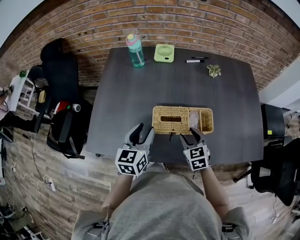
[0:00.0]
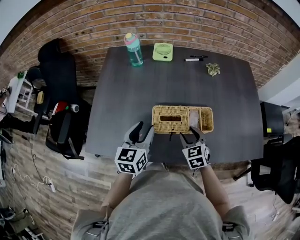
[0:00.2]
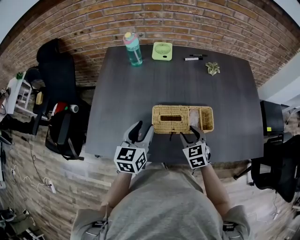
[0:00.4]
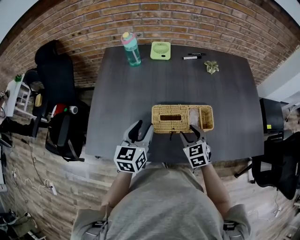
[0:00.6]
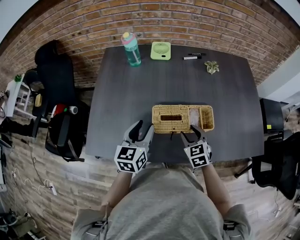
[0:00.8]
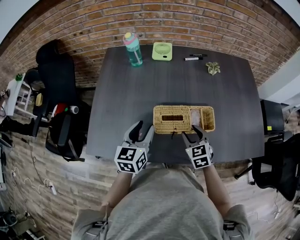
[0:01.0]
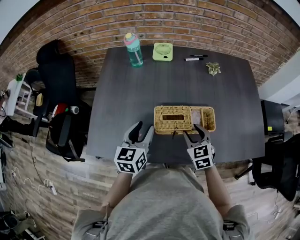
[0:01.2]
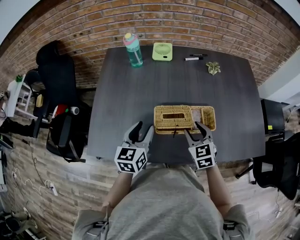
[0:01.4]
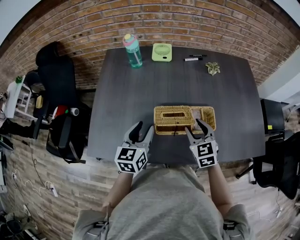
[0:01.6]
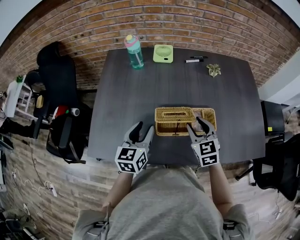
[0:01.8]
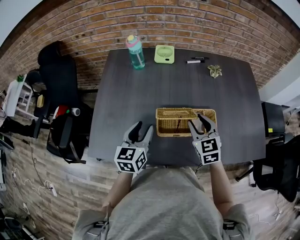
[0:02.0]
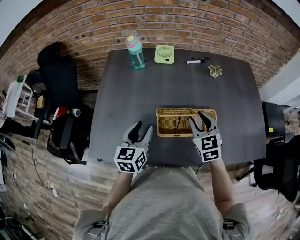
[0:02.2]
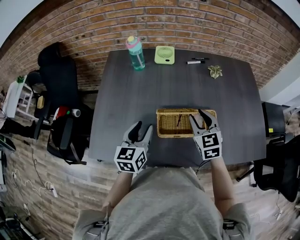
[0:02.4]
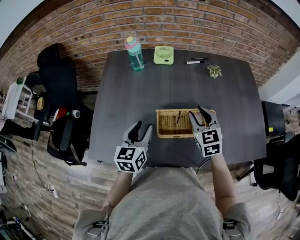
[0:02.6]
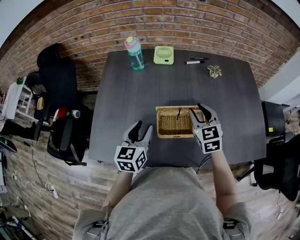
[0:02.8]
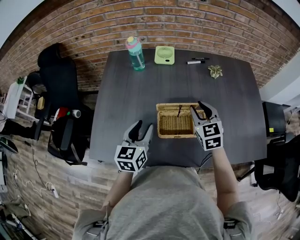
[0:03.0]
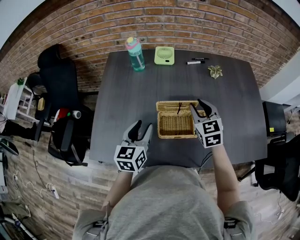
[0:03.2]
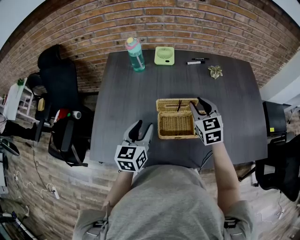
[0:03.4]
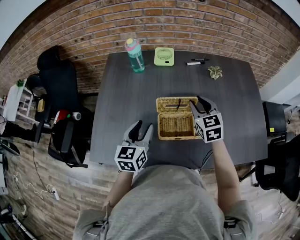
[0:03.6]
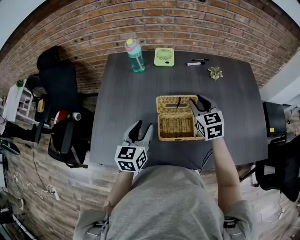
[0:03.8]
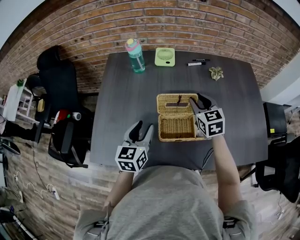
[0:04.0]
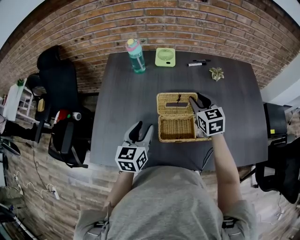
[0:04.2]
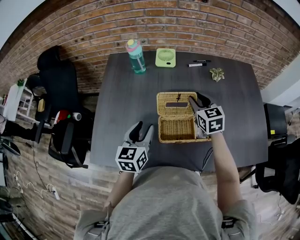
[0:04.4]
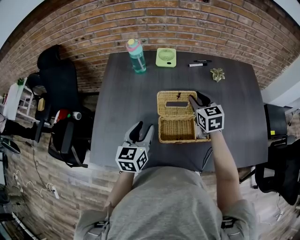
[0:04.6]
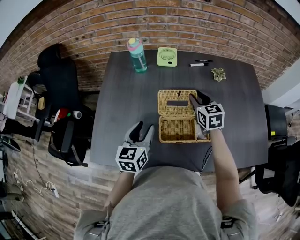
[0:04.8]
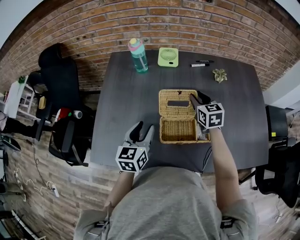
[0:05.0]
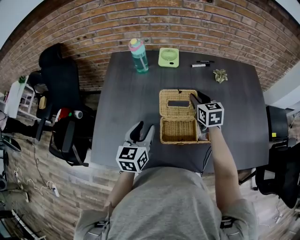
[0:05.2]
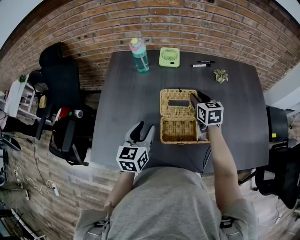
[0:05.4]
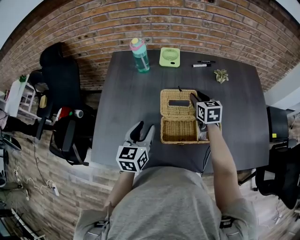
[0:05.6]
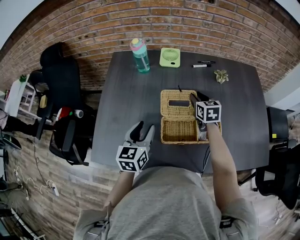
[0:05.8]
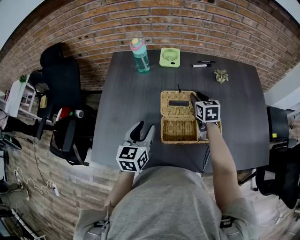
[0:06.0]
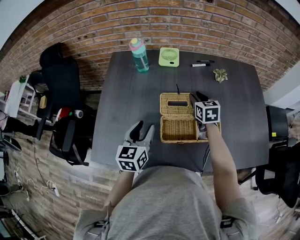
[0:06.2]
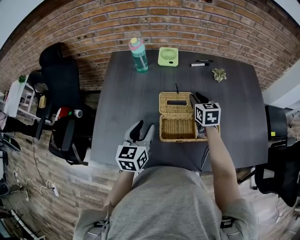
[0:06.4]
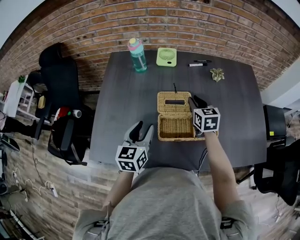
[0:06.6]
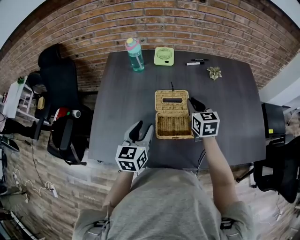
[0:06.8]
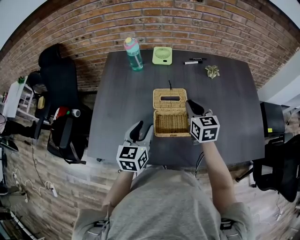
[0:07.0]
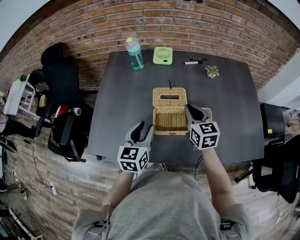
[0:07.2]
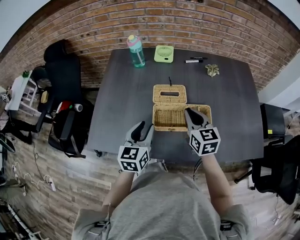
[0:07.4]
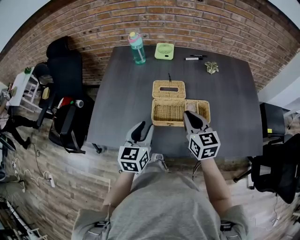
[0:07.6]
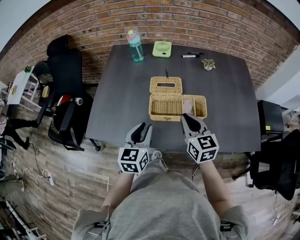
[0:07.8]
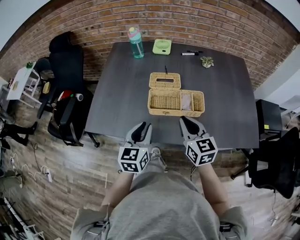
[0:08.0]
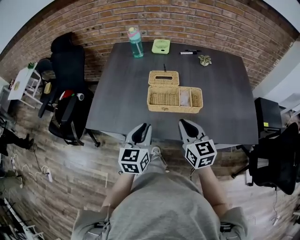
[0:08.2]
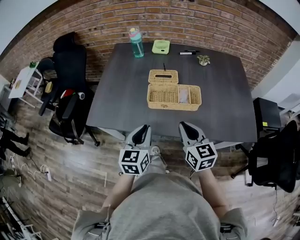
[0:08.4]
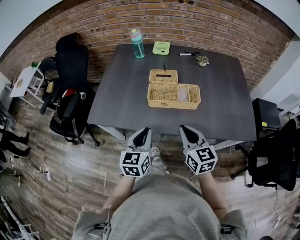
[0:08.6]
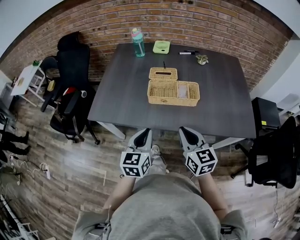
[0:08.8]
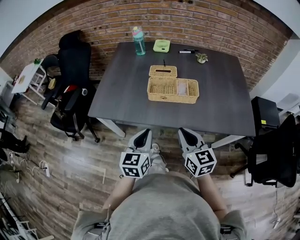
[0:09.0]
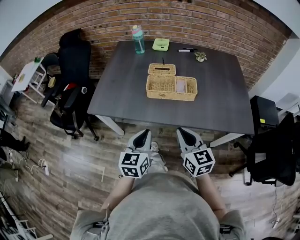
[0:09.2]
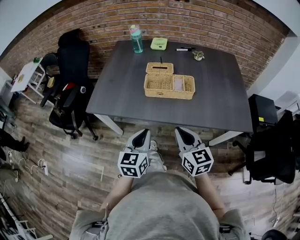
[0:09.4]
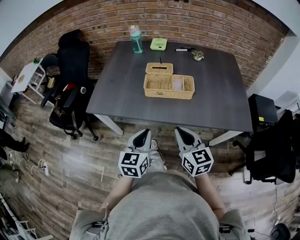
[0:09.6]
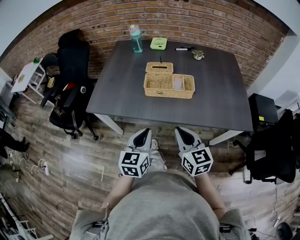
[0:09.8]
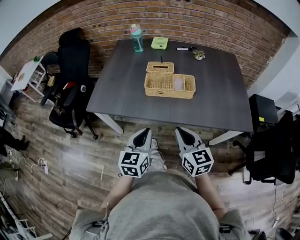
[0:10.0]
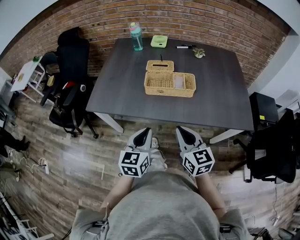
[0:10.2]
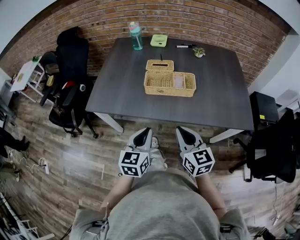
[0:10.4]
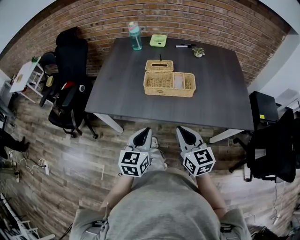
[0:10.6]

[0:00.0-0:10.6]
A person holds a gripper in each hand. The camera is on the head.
0:00.0 to 0:01.6: The right gripper shifts approximately 5 cm upward.
0:01.6 to 0:03.0: The right gripper heads forward, covering about 10 cm.
0:03.0 to 0:04.6: The right gripper travels forward by approximately 10 cm.
0:04.6 to 0:06.0: The right gripper moves downward, approximately 5 cm.
0:06.0 to 0:07.6: The left gripper travels backward and to the right by approximately 10 cm; the right gripper moves backward and upward, about 25 cm, and closes.
0:07.6 to 0:09.0: Both grippers move backward, approximately 25 cm. The left gripper closes its fingers.
0:09.0 to 0:10.6: The grippers stay close to where they were, moving slightly.

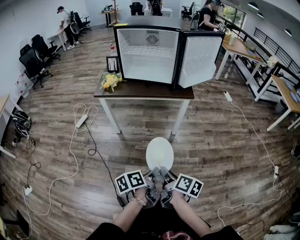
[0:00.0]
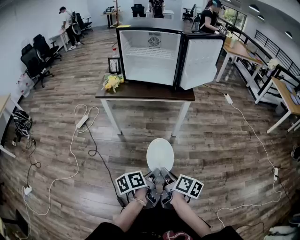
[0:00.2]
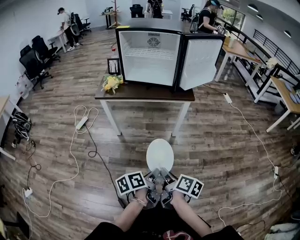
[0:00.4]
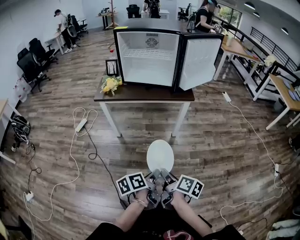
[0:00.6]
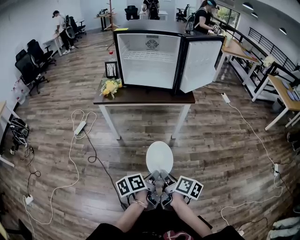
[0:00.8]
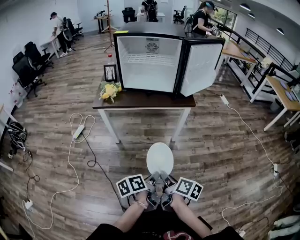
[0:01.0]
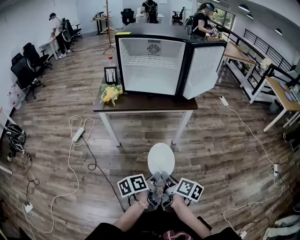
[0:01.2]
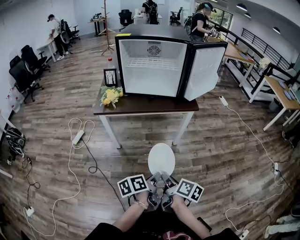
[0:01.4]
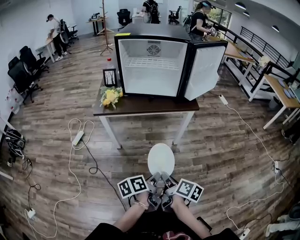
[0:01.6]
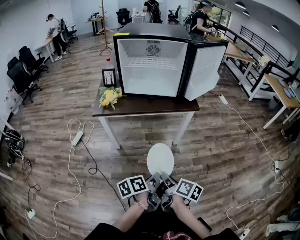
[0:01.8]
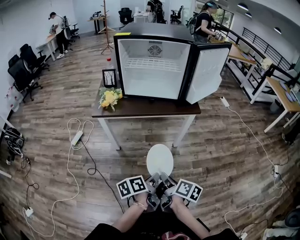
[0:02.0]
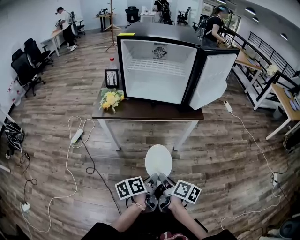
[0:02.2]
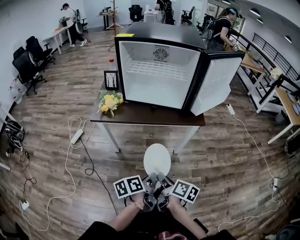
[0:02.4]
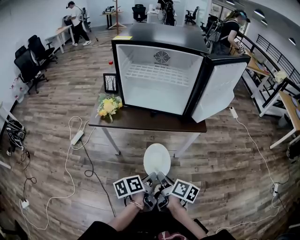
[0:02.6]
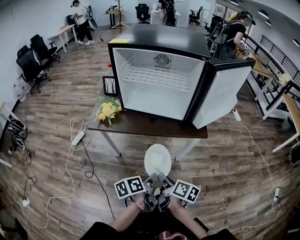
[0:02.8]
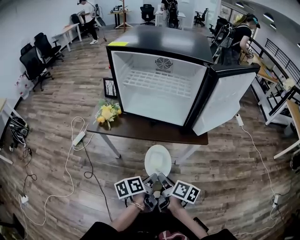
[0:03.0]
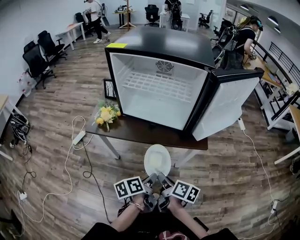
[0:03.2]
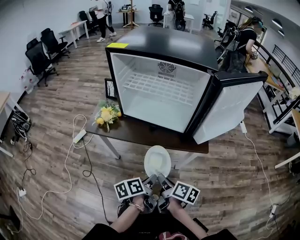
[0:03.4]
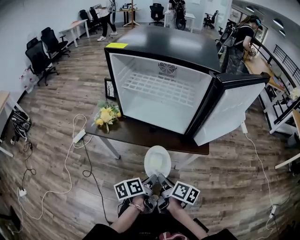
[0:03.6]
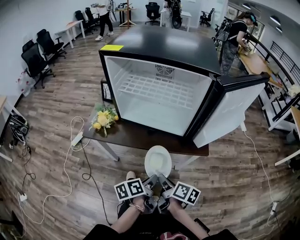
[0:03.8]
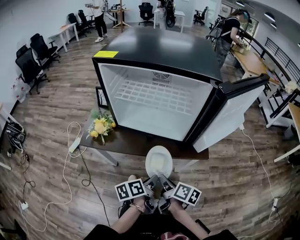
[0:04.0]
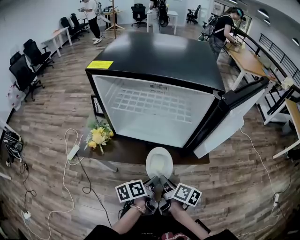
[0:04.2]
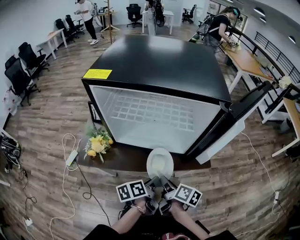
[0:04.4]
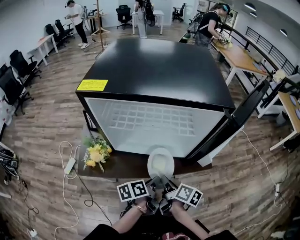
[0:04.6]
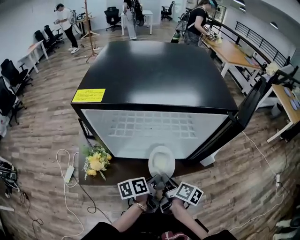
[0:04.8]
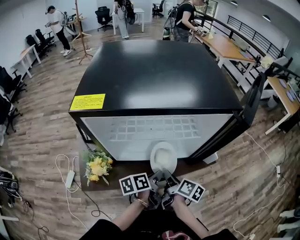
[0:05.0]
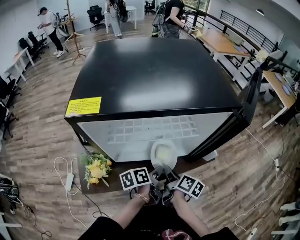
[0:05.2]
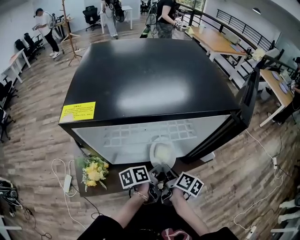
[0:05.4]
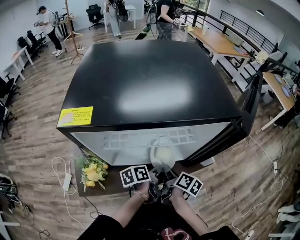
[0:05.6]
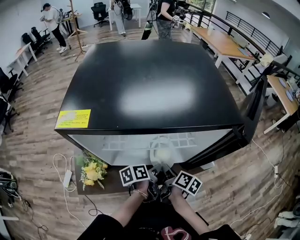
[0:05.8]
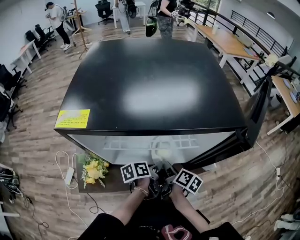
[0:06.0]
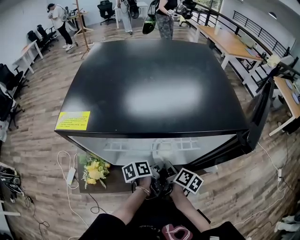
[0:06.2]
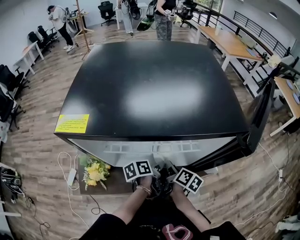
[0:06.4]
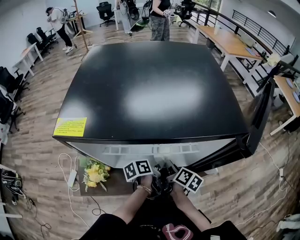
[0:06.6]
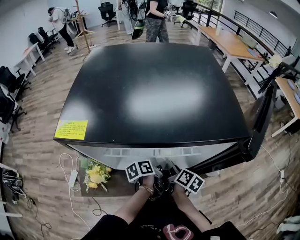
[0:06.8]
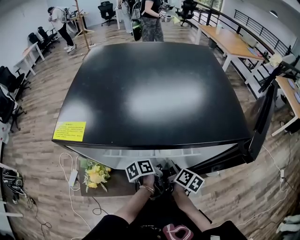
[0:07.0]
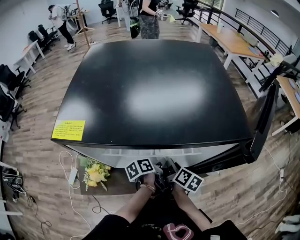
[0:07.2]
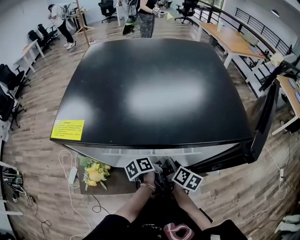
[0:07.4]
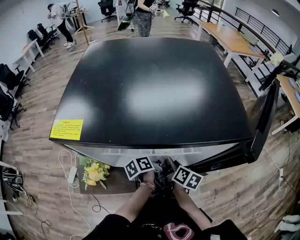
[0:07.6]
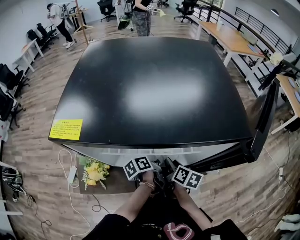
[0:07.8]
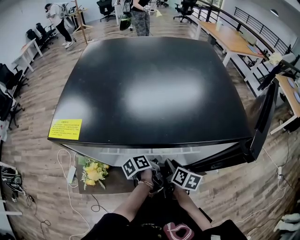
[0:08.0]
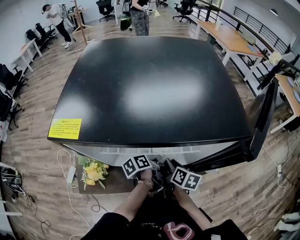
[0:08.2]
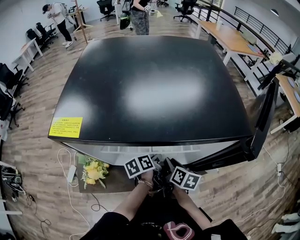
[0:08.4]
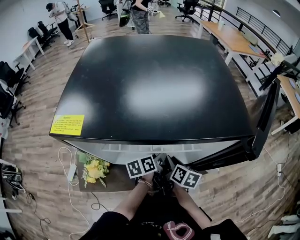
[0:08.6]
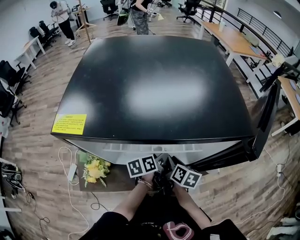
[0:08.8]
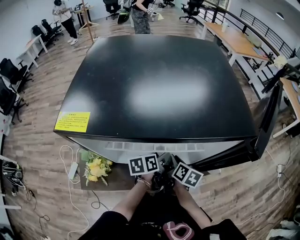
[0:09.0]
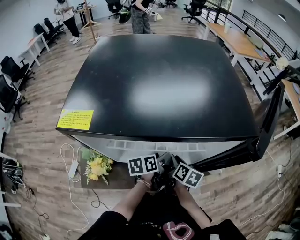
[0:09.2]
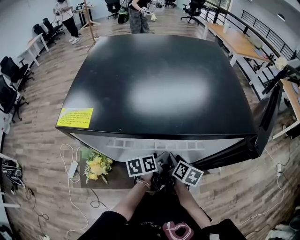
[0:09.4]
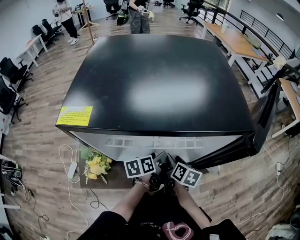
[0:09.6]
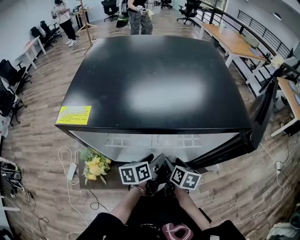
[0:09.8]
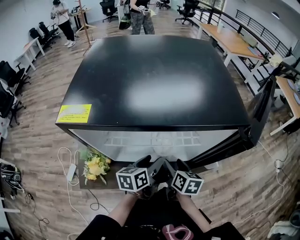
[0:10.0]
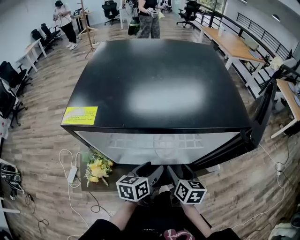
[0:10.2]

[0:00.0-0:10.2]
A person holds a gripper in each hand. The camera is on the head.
0:00.0 to 0:01.4: The grippers both shift to the left and forward by roughly 10 cm.
0:01.4 to 0:03.0: The grippers both shift forward by some 25 cm.
0:03.0 to 0:04.4: Both grippers move forward, approximately 20 cm.
0:04.4 to 0:05.8: Both grippers move forward, about 15 cm.
0:05.8 to 0:07.2: The two grippers go some 5 cm forward.
0:07.2 to 0:08.8: The left gripper opens its fingers.
0:08.8 to 0:10.2: The two grippers go approximately 10 cm backward and upward. The right gripper opens; the left gripper turns by some 20 degrees.

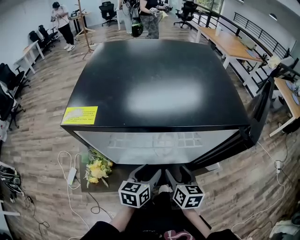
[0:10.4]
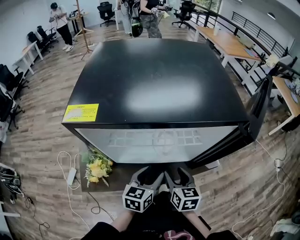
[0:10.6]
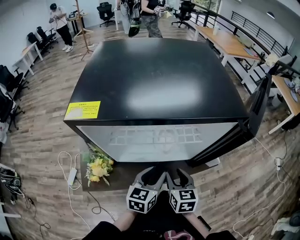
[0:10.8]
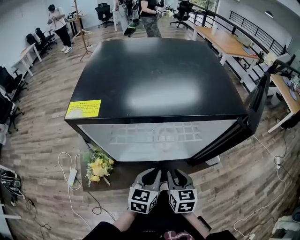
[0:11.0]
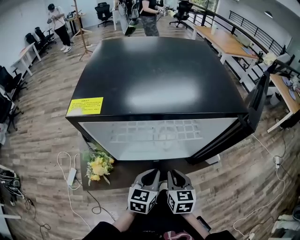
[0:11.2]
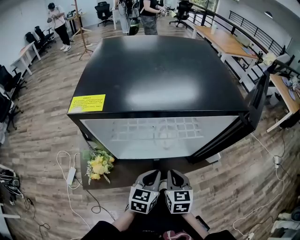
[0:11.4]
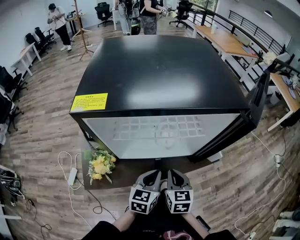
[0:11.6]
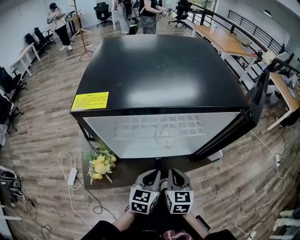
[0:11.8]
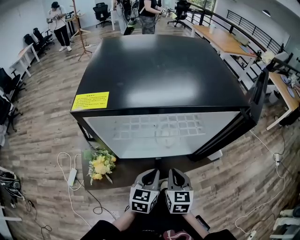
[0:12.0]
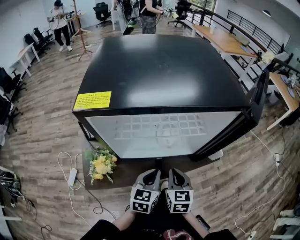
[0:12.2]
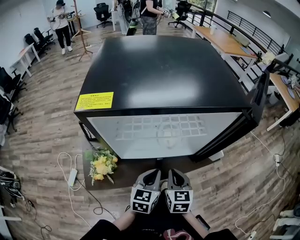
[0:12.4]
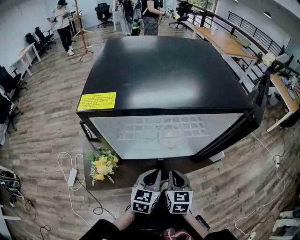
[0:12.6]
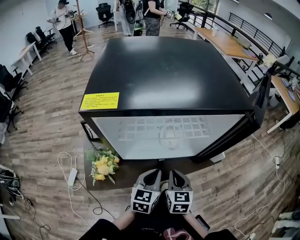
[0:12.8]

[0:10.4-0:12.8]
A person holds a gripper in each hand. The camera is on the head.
0:10.4 to 0:11.6: The two grippers go some 5 cm backward. The right gripper closes up, while the left gripper closes.
0:11.6 to 0:12.8: The grippers make only small movements.

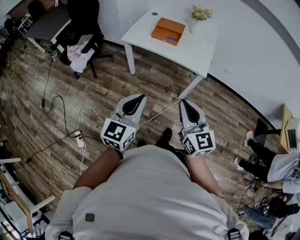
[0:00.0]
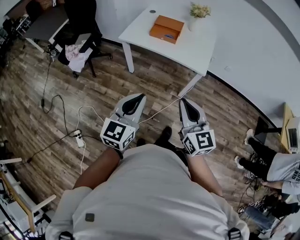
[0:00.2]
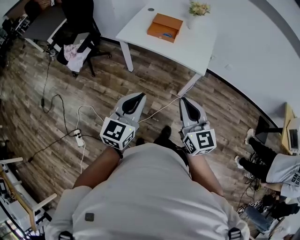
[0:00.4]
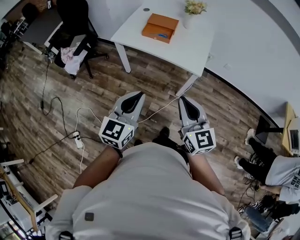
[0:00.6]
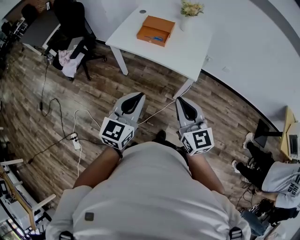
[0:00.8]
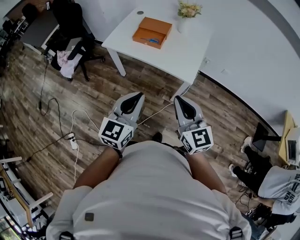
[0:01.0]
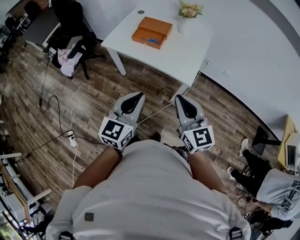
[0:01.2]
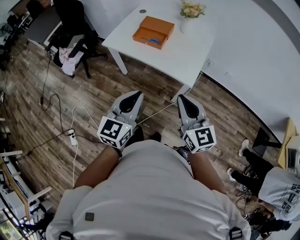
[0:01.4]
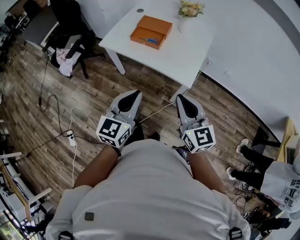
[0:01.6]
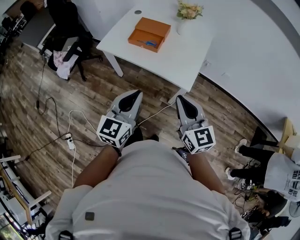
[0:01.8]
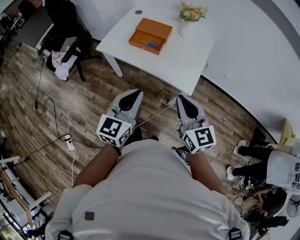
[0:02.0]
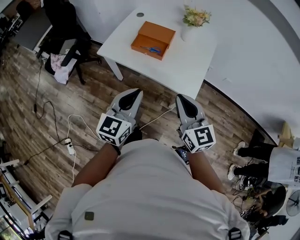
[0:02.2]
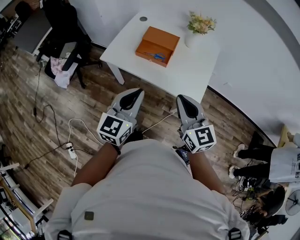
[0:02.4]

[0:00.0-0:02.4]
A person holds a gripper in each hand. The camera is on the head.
0:00.0 to 0:01.2: The left gripper moves to the right and forward, some 25 cm; the right gripper shifts roughly 25 cm forward and to the right.
0:01.2 to 0:02.4: The two grippers go some 20 cm forward and to the left.
